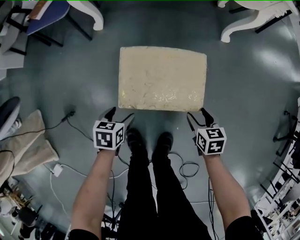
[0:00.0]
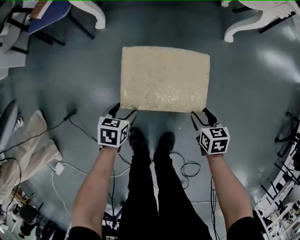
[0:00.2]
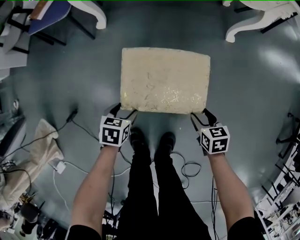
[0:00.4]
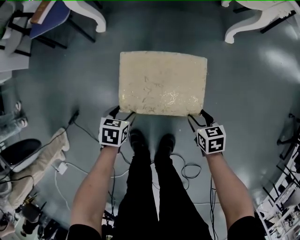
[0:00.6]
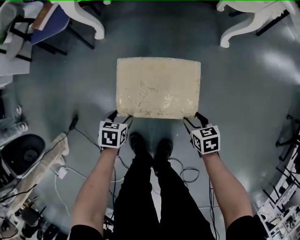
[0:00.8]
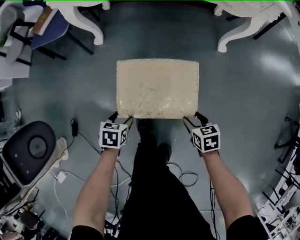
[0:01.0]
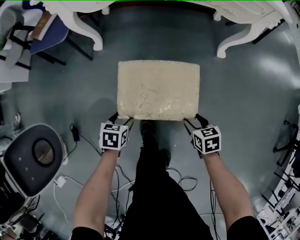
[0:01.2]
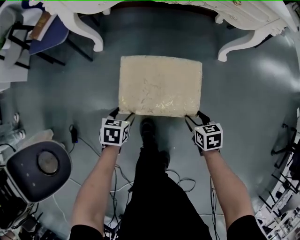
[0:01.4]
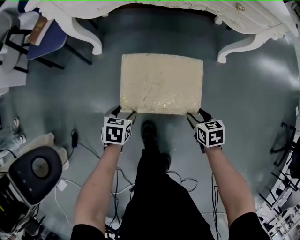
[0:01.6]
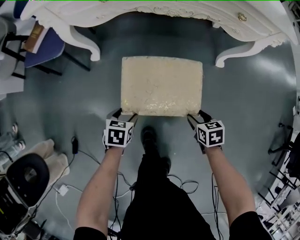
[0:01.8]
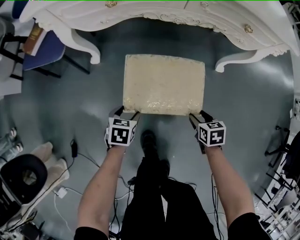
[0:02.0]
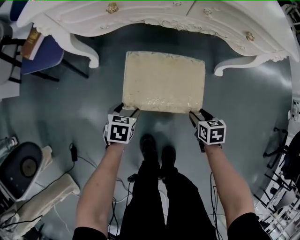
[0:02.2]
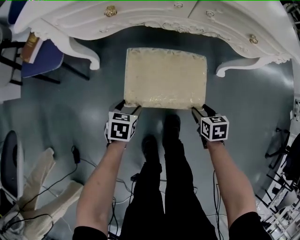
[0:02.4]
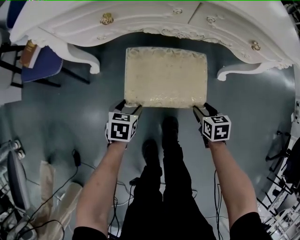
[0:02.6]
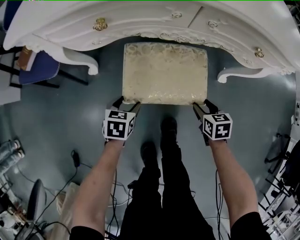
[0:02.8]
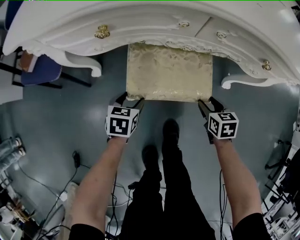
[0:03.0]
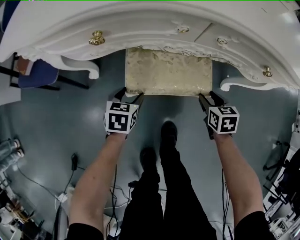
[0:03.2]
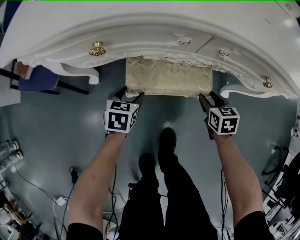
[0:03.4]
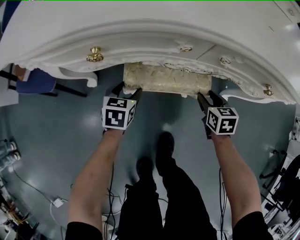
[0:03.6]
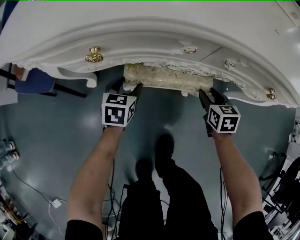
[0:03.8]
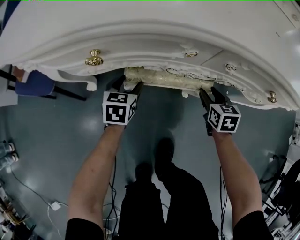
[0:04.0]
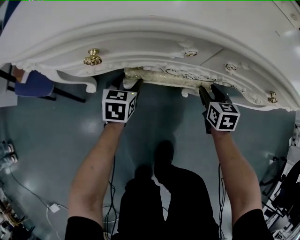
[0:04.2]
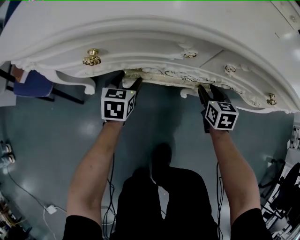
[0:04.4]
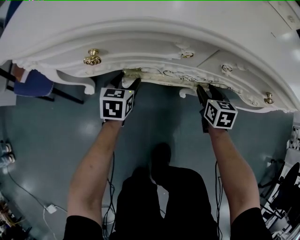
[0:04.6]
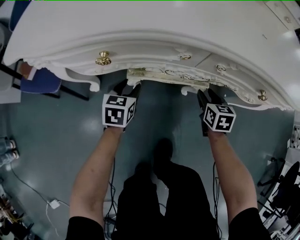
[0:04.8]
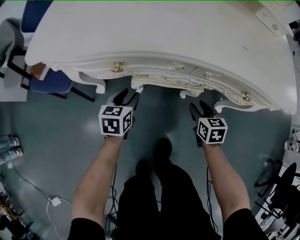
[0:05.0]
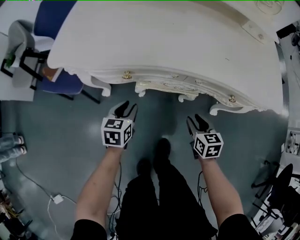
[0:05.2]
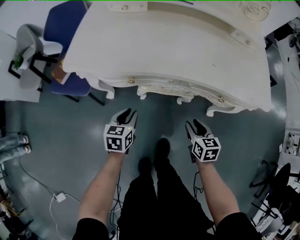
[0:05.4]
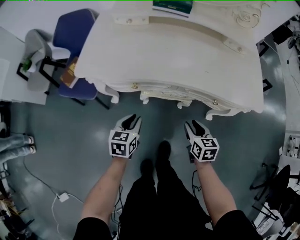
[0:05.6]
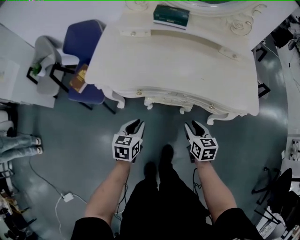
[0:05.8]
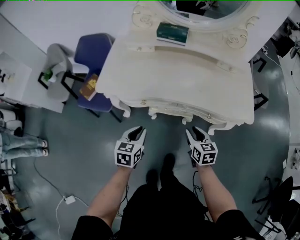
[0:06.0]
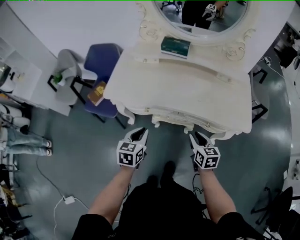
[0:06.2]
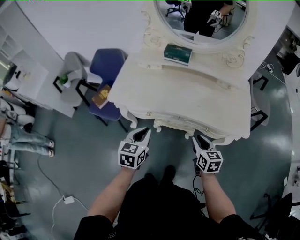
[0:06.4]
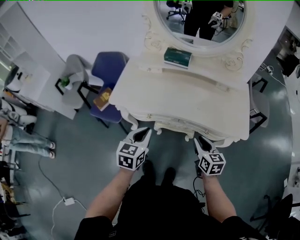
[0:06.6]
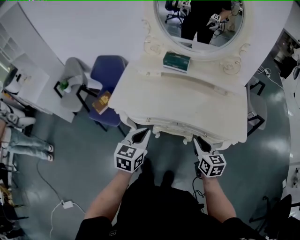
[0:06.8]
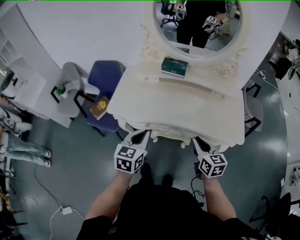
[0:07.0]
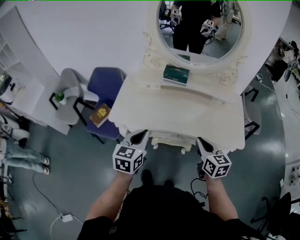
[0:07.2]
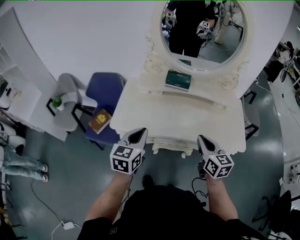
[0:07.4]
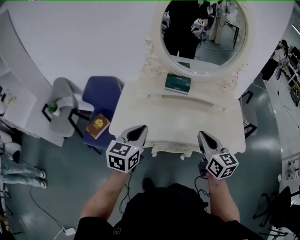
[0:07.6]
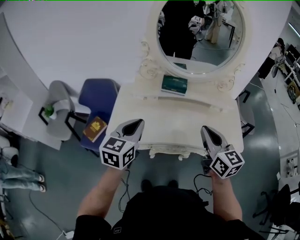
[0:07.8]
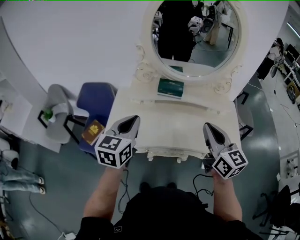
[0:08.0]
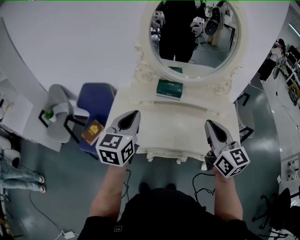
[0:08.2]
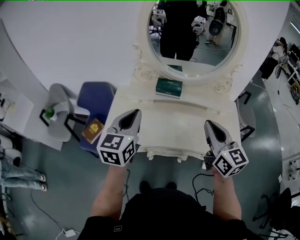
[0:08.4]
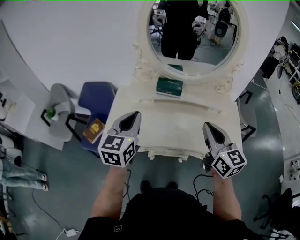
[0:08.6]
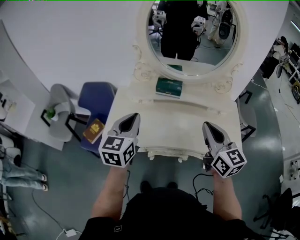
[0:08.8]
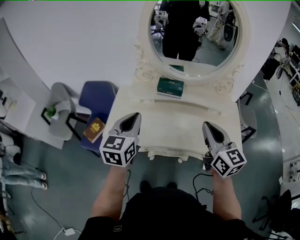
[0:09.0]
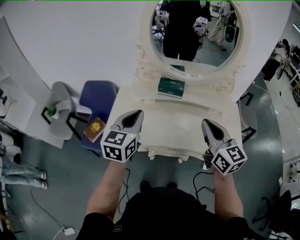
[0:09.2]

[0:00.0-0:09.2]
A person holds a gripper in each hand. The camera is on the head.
0:00.0 to 0:01.6: Both grippers travel together forward, approximately 15 cm.
0:01.6 to 0:03.0: The two grippers go approximately 25 cm forward.
0:03.0 to 0:04.6: Both grippers move forward, about 20 cm.
0:04.6 to 0:06.2: The right gripper goes about 40 cm upward; the left gripper heads upward and backward, covering approximately 50 cm, and closes up.
0:06.2 to 0:07.6: The left gripper is displaced upward and forward by approximately 20 cm; the right gripper moves upward, some 25 cm, changes its angle by roughly 20 degrees, and closes.
0:07.6 to 0:09.2: The right gripper goes about 10 cm upward. The left gripper shifts approximately 10 cm forward and upward.

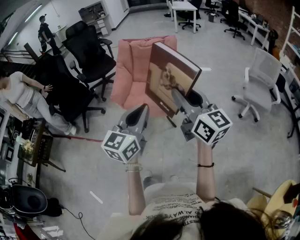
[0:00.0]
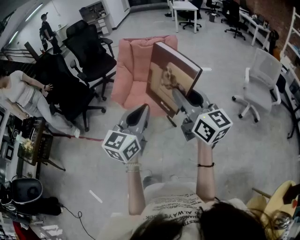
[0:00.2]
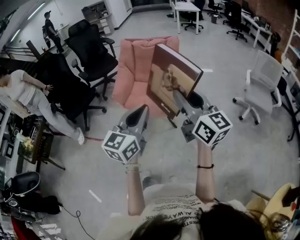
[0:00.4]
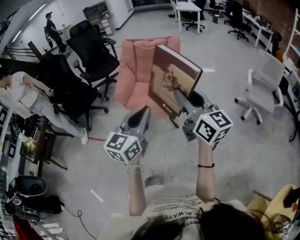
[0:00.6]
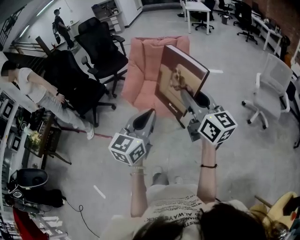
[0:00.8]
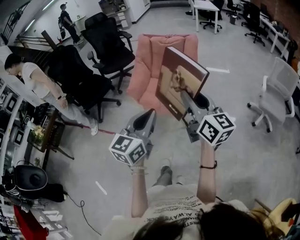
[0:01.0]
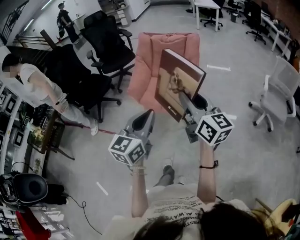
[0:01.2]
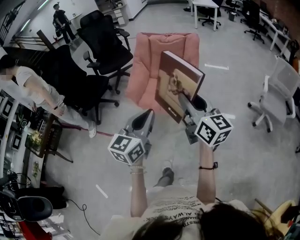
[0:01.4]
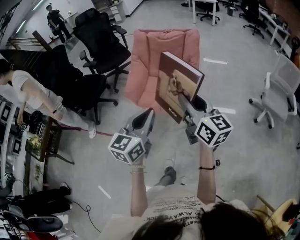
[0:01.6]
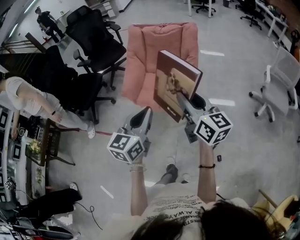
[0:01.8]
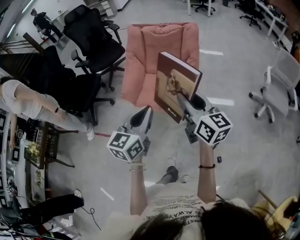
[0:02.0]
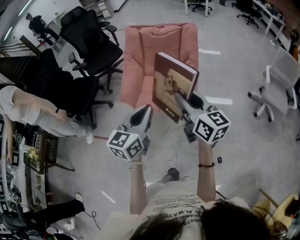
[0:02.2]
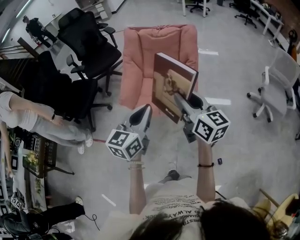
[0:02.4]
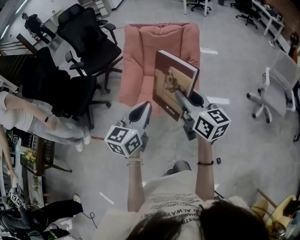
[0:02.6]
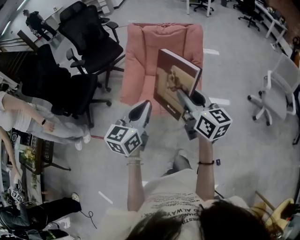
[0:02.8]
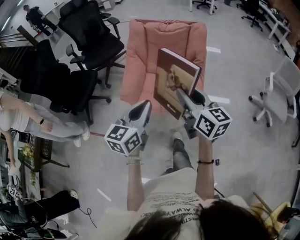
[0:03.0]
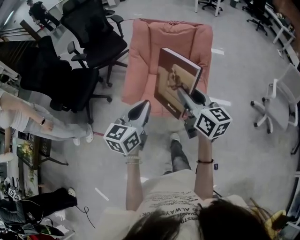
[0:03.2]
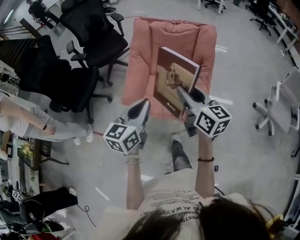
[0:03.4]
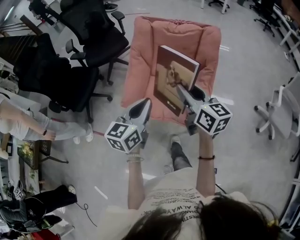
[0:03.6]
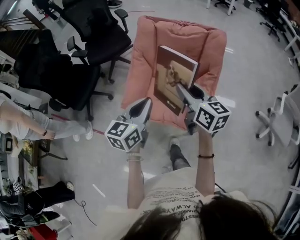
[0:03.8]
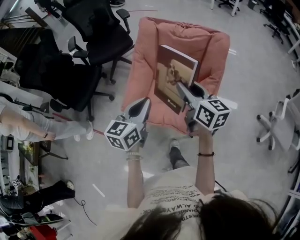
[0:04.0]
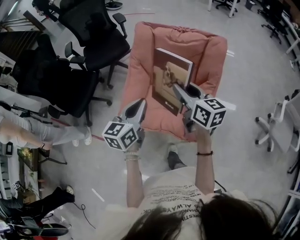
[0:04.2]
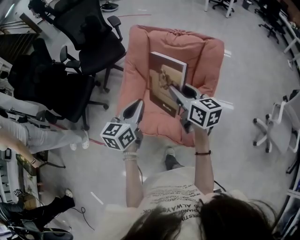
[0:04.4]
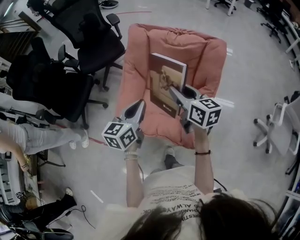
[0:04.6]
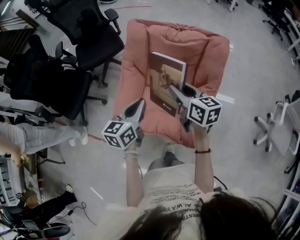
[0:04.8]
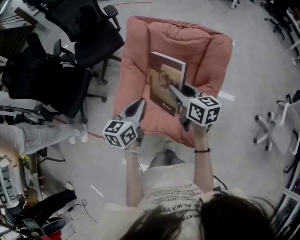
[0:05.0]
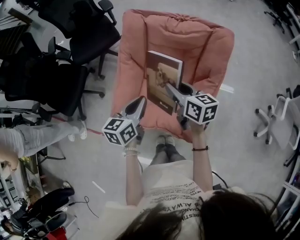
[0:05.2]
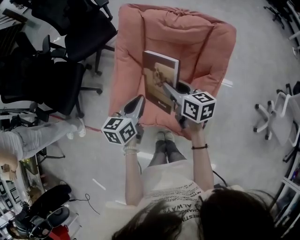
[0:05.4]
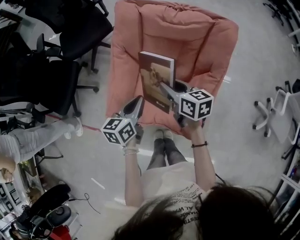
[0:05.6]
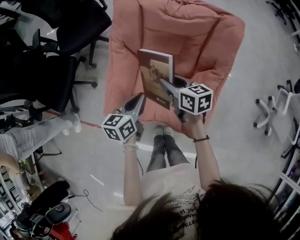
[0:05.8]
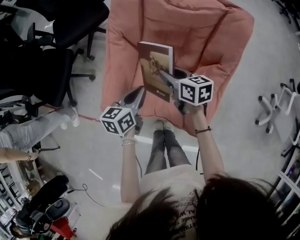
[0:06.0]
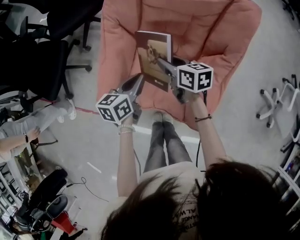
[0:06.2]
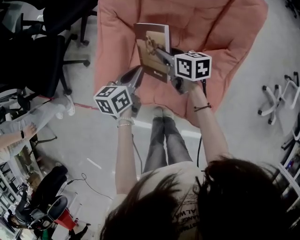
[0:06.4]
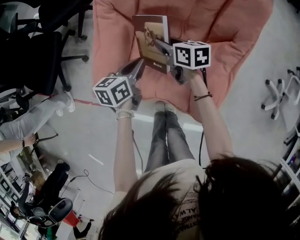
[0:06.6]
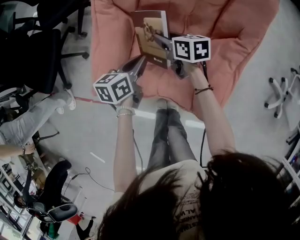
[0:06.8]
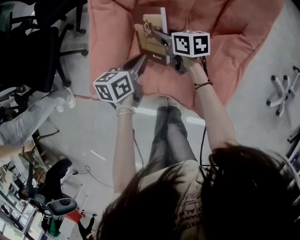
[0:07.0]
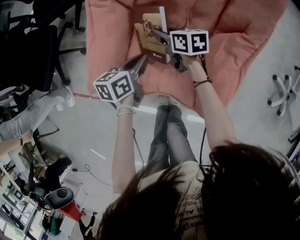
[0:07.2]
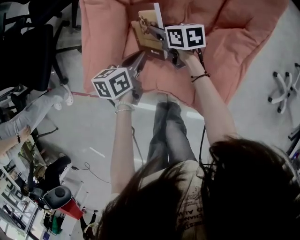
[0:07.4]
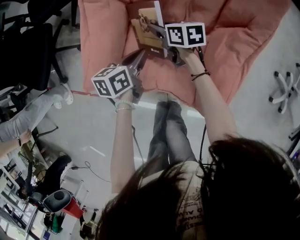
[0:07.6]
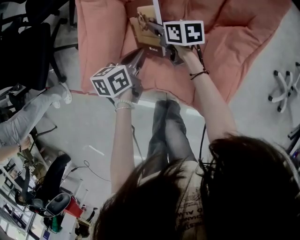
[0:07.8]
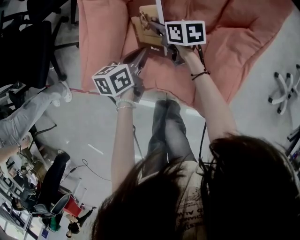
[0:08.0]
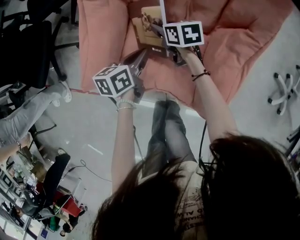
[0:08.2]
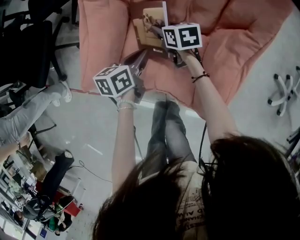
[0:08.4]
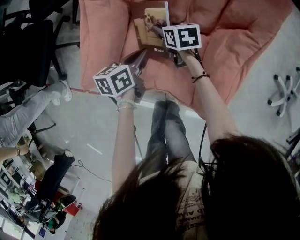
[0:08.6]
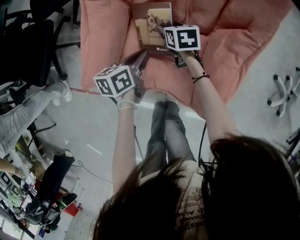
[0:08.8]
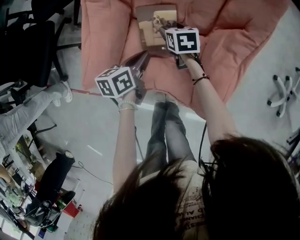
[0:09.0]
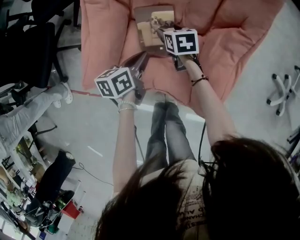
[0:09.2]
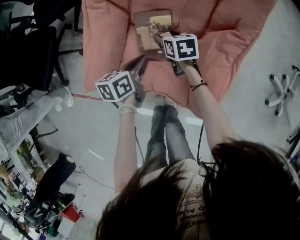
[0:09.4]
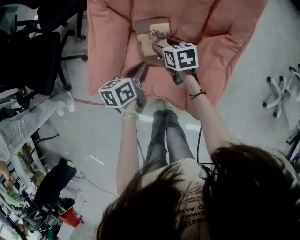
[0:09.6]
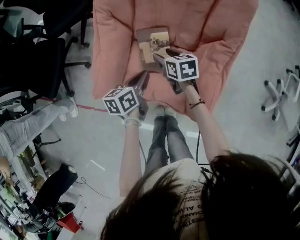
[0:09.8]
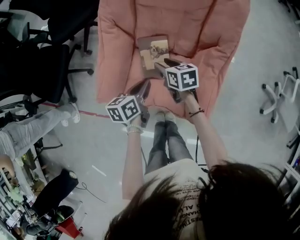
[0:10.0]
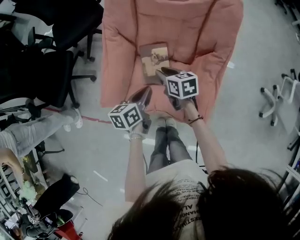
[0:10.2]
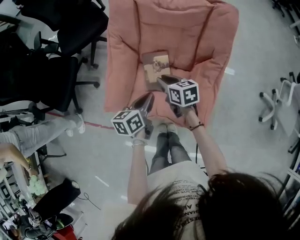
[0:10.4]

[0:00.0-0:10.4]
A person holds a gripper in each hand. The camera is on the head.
0:00.0 to 0:01.4: The right gripper moves forward and to the left, roughly 10 cm, while the left gripper goes some 10 cm to the left and forward.
0:01.4 to 0:03.0: The grippers both shift forward and to the left by approximately 20 cm.
0:03.0 to 0:04.4: The two grippers go some 30 cm forward.
0:04.4 to 0:06.0: The two grippers go some 25 cm downward and forward. The left gripper turns by approximately 20 degrees, while the right gripper swivels about 20 degrees.
0:06.0 to 0:07.4: Both grippers move downward, approximately 20 cm.
0:07.4 to 0:09.0: The right gripper is displaced to the right by about 5 cm, turns by some 20 degrees, and opens up.
0:09.0 to 0:10.4: Both grippers move upward and backward, approximately 20 cm. The right gripper turns by approximately 20 degrees, and closes up.

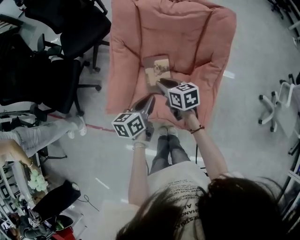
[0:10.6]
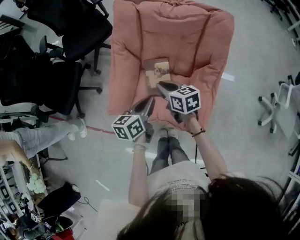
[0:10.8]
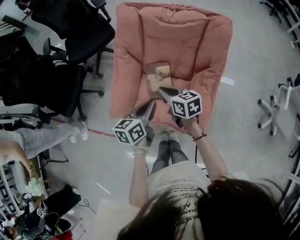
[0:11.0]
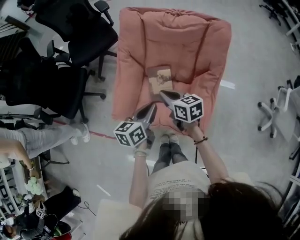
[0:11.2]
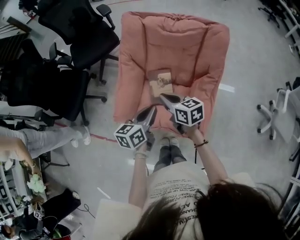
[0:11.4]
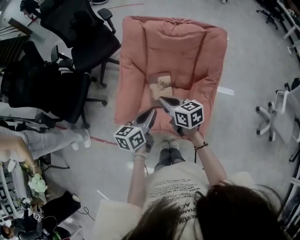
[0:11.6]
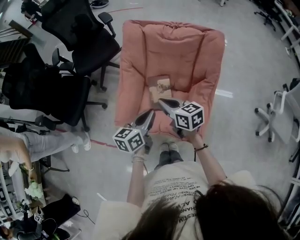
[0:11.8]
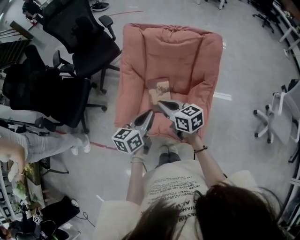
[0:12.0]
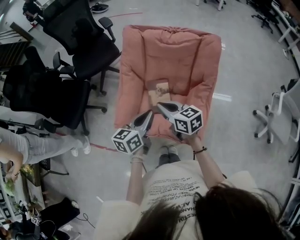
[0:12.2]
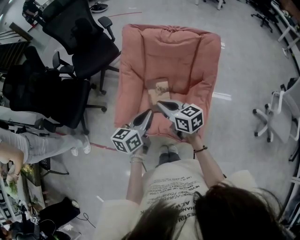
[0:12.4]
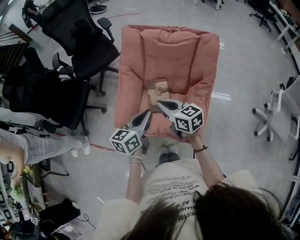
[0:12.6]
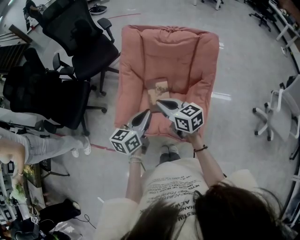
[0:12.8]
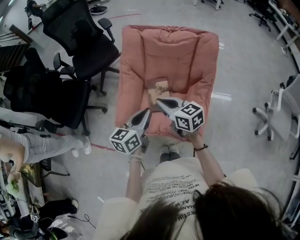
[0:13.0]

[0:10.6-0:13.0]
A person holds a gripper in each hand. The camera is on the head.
0:10.6 to 0:11.8: The right gripper is displaced upward and backward by approximately 15 cm; the left gripper goes roughly 10 cm upward.
0:11.8 to 0:13.0: The grippers move only a little.

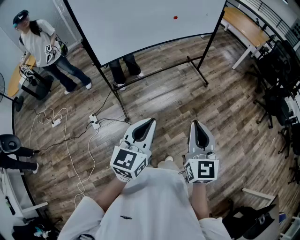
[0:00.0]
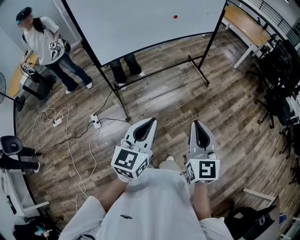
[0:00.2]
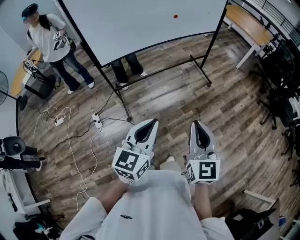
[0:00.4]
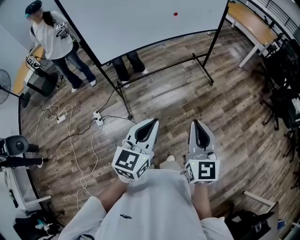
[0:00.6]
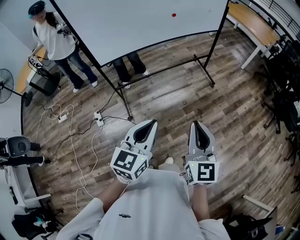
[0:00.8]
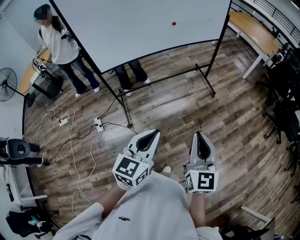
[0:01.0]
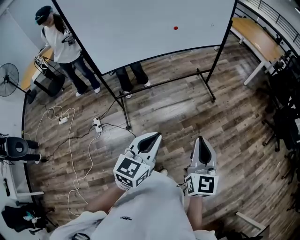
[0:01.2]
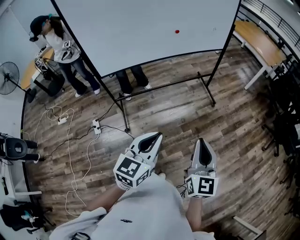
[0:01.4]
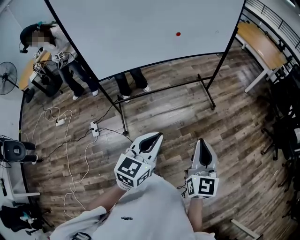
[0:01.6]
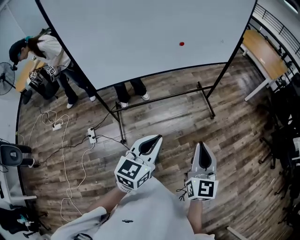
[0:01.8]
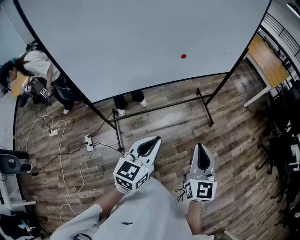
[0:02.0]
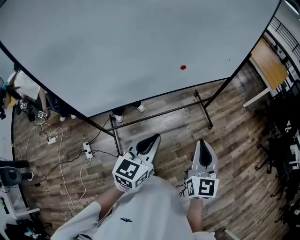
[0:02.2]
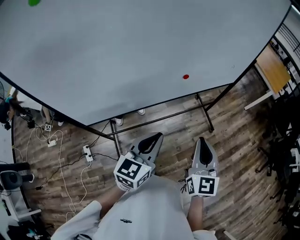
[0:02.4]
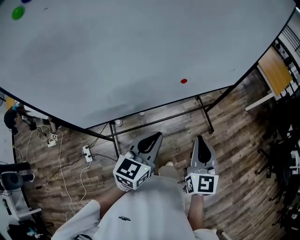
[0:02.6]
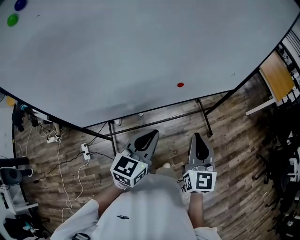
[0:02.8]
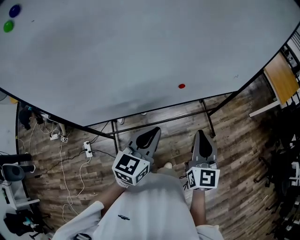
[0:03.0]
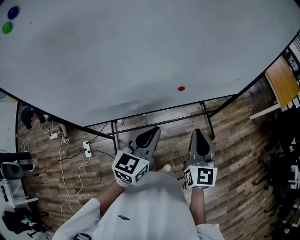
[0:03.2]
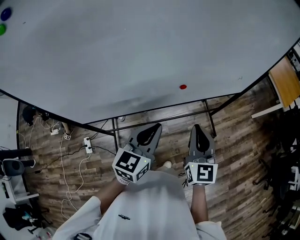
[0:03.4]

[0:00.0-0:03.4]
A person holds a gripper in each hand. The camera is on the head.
0:00.0 to 0:01.6: The two grippers go some 20 cm forward and to the right.
0:01.6 to 0:03.4: The two grippers travel together, forward, about 50 cm.
